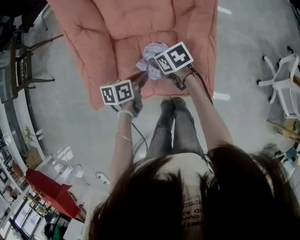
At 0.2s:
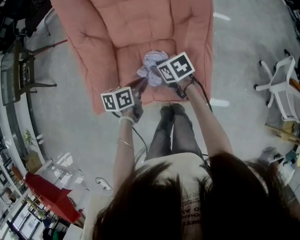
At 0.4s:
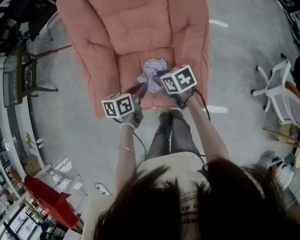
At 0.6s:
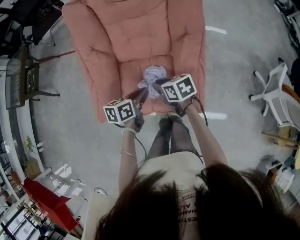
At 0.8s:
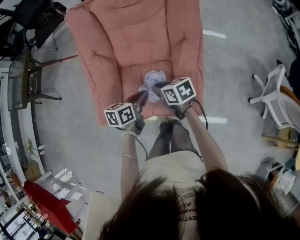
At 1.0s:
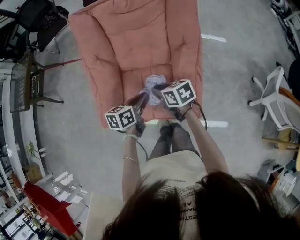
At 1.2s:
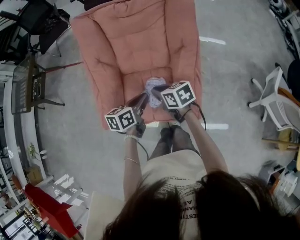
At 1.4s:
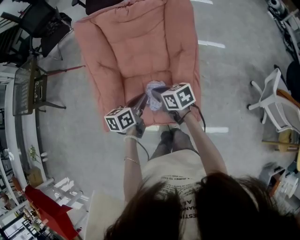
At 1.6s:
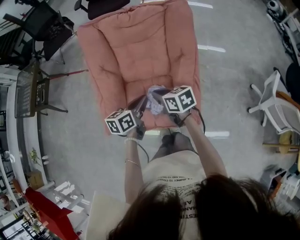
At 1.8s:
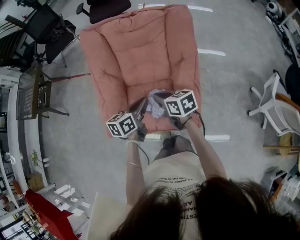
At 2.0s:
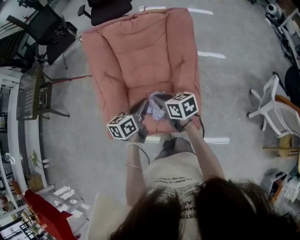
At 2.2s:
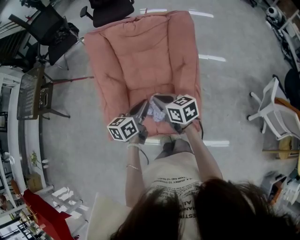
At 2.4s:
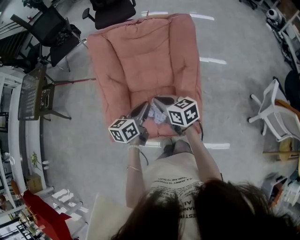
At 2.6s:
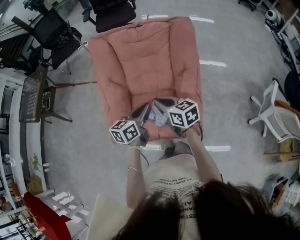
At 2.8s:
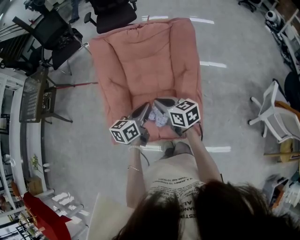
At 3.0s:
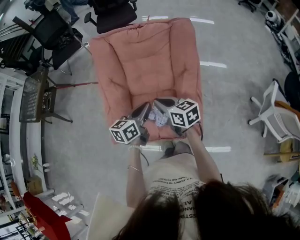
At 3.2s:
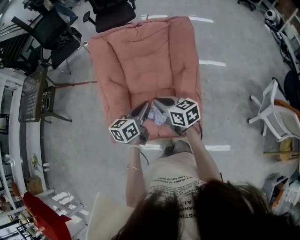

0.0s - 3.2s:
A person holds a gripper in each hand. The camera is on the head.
0.0s - 1.6s: The two grippers go some 20 cm upward. The left gripper swivels approximately 20 degrees, while the right gripper closes up.
1.6s - 3.2s: Both grippers travel together upward, approximately 5 cm.

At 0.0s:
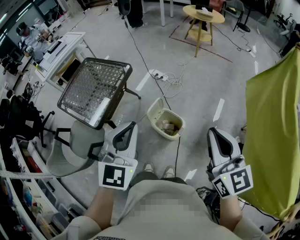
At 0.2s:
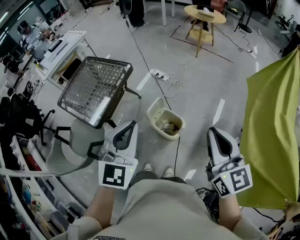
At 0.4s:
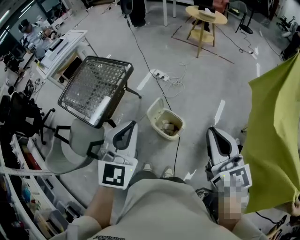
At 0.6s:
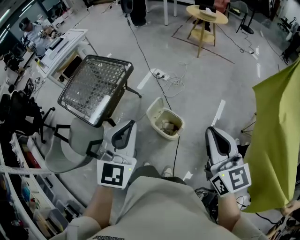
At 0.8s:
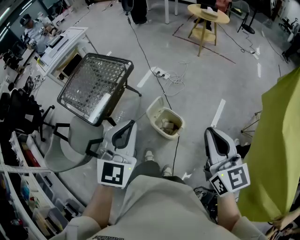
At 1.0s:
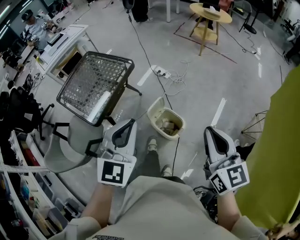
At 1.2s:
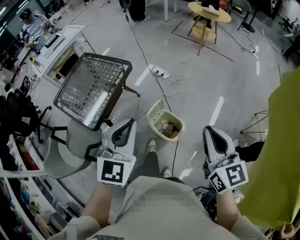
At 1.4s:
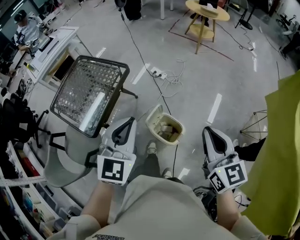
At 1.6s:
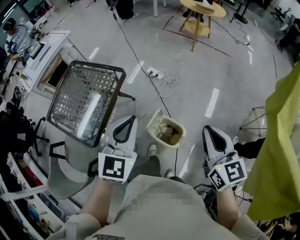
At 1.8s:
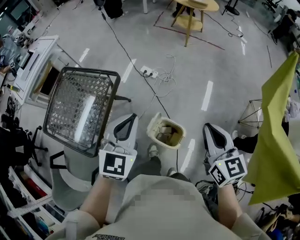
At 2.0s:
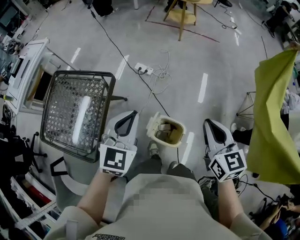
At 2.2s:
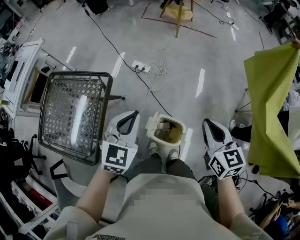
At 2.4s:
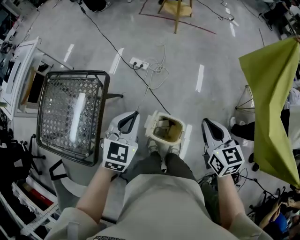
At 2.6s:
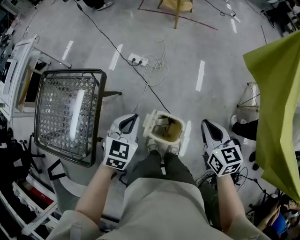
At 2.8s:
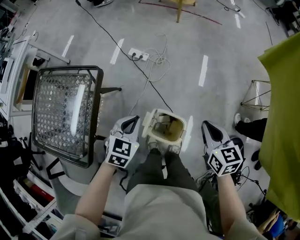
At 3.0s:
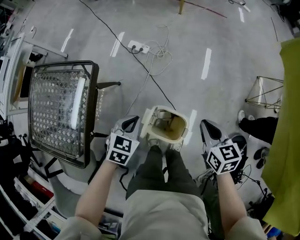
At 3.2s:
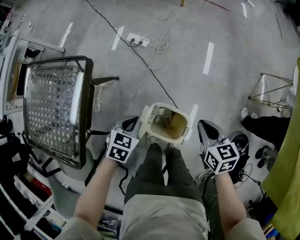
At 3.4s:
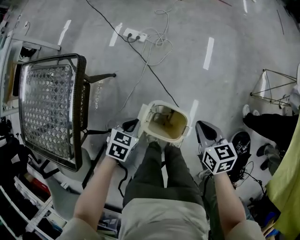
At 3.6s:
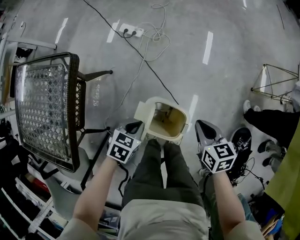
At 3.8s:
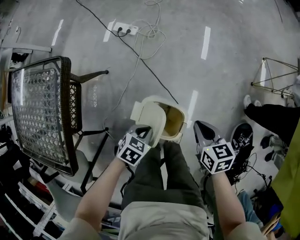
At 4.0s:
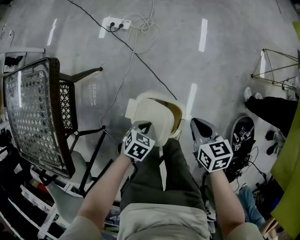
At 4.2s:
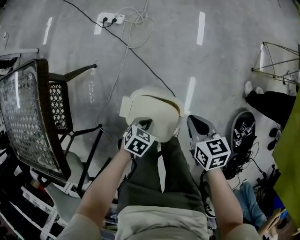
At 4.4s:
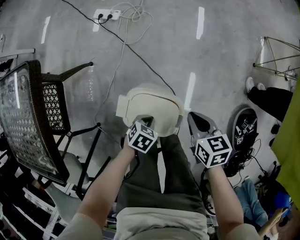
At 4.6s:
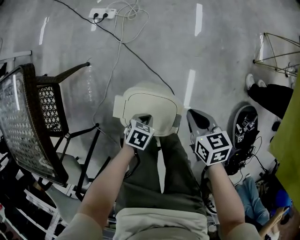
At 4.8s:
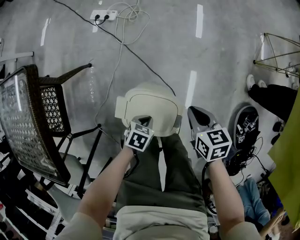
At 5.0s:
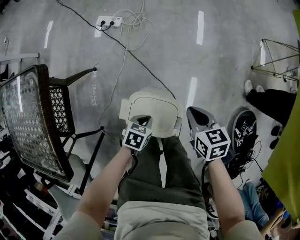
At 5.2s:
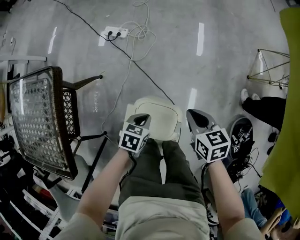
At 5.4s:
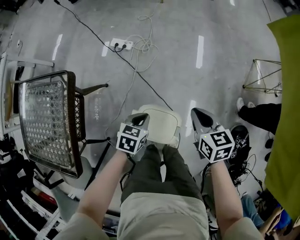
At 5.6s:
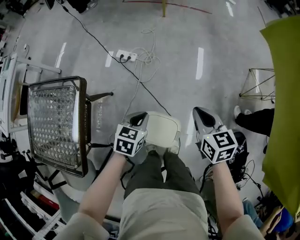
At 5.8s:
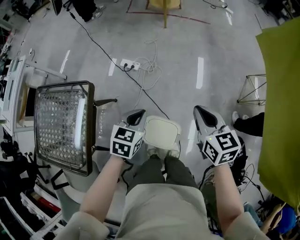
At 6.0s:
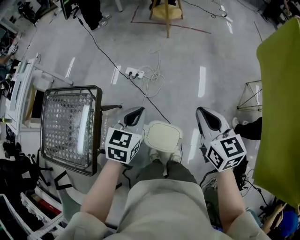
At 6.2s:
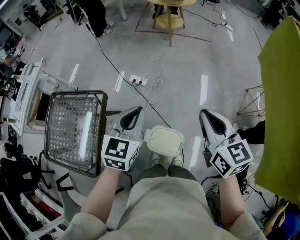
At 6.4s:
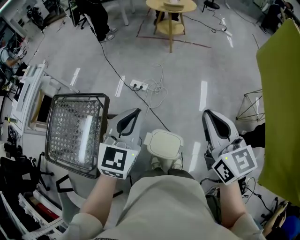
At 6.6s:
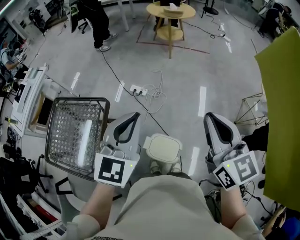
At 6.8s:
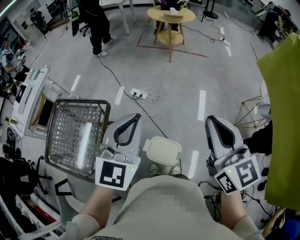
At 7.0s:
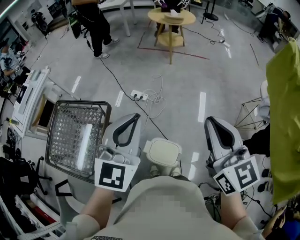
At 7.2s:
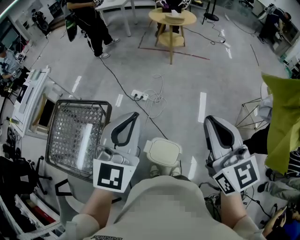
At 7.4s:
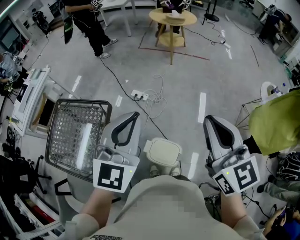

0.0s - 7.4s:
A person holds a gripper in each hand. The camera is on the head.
0.0s - 1.4s: The right gripper is displaced forward and downward by approximately 15 cm. Meanwhile the left gripper moves forward, roughly 10 cm.
1.4s - 3.0s: The two grippers go approximately 35 cm downward and forward. The left gripper tips its fingers downward by approximately 30 degrees. Meanwhile the right gripper rotates approximately 30 degrees.
3.0s - 4.4s: Both grippers move downward, some 30 cm. The left gripper rotates approximately 30 degrees.
4.4s - 6.0s: Both grippers travel together upward, roughly 50 cm. The left gripper tilts its fingers some 30 degrees upward. The right gripper changes its angle by roughly 30 degrees.
6.0s - 7.4s: The grippers both shift upward by about 20 cm. The right gripper rotates roughly 20 degrees. Meanwhile the left gripper changes its angle by some 30 degrees.

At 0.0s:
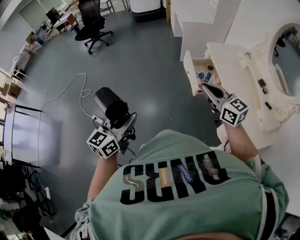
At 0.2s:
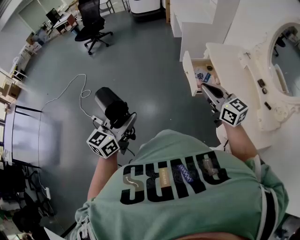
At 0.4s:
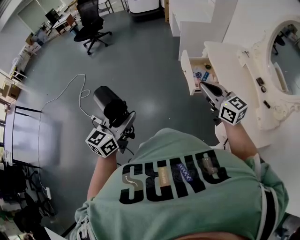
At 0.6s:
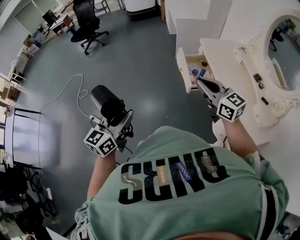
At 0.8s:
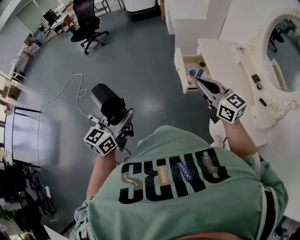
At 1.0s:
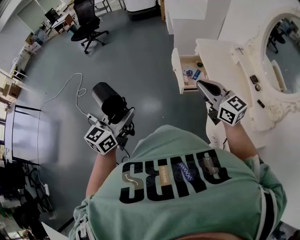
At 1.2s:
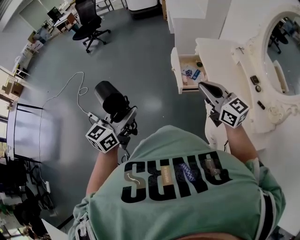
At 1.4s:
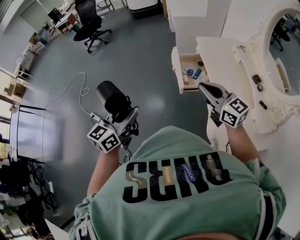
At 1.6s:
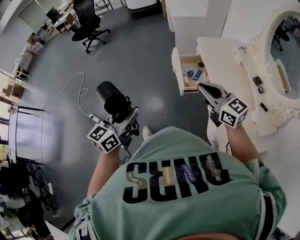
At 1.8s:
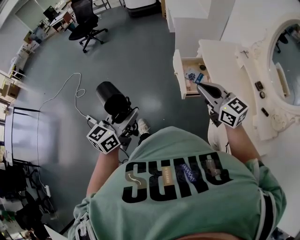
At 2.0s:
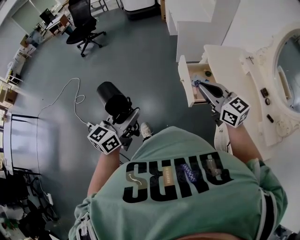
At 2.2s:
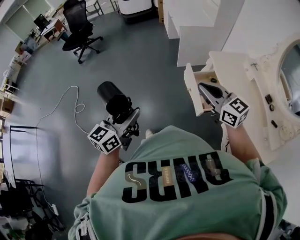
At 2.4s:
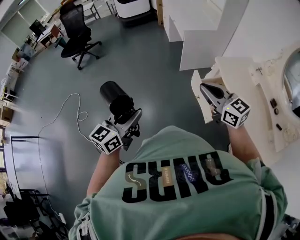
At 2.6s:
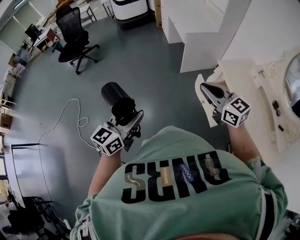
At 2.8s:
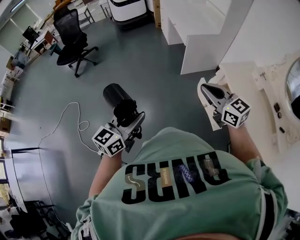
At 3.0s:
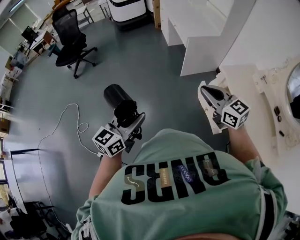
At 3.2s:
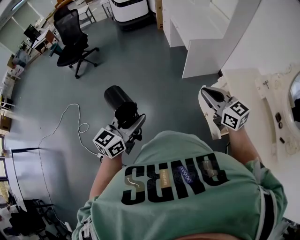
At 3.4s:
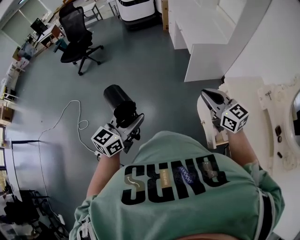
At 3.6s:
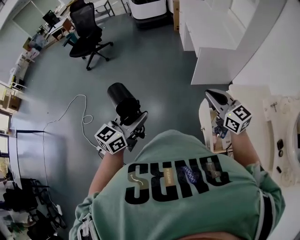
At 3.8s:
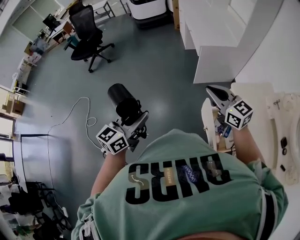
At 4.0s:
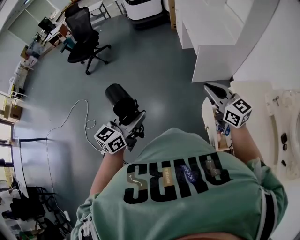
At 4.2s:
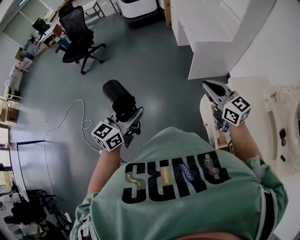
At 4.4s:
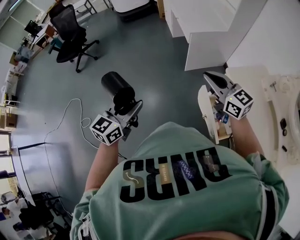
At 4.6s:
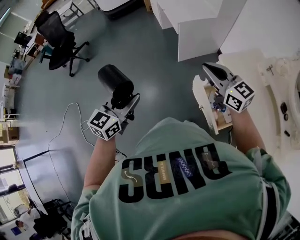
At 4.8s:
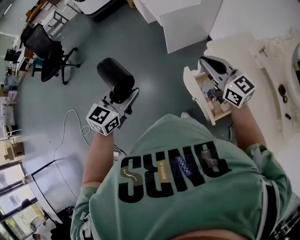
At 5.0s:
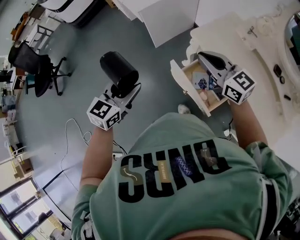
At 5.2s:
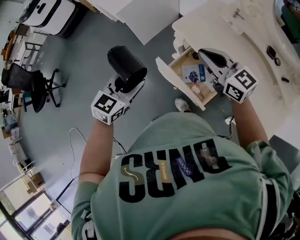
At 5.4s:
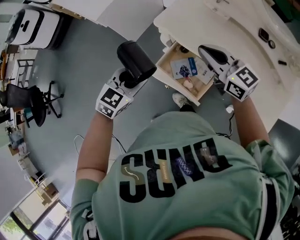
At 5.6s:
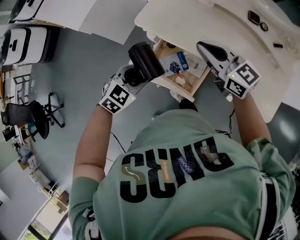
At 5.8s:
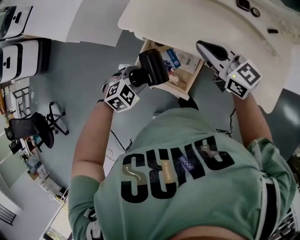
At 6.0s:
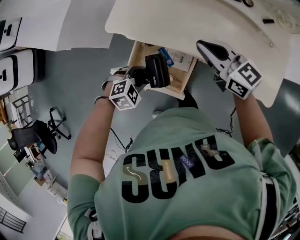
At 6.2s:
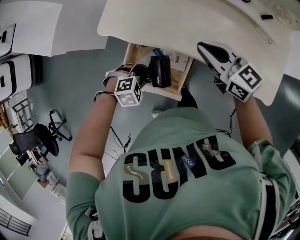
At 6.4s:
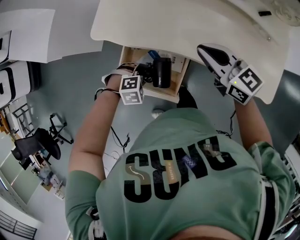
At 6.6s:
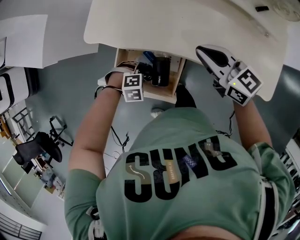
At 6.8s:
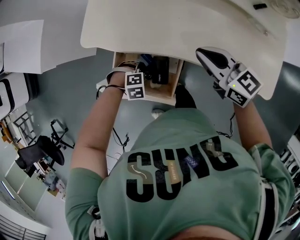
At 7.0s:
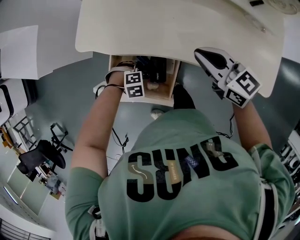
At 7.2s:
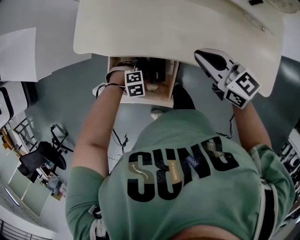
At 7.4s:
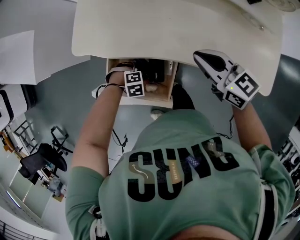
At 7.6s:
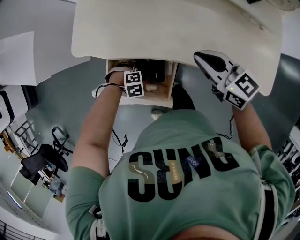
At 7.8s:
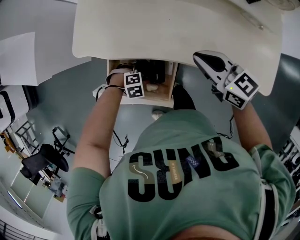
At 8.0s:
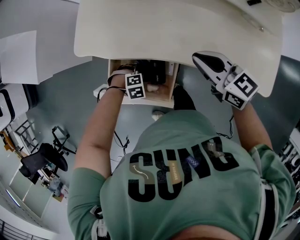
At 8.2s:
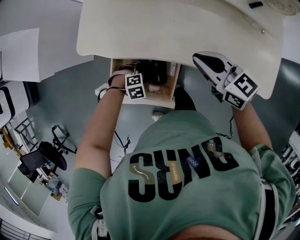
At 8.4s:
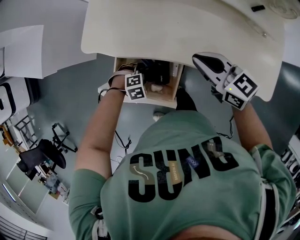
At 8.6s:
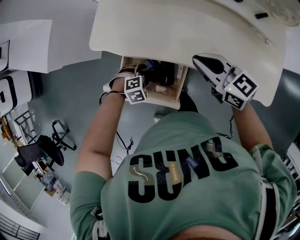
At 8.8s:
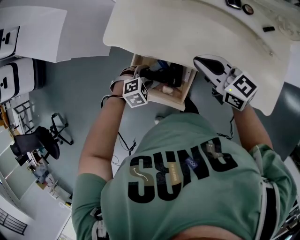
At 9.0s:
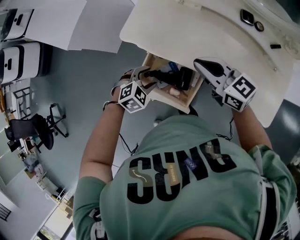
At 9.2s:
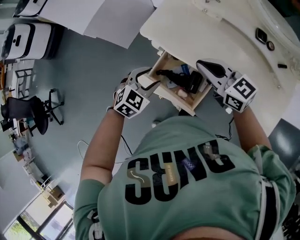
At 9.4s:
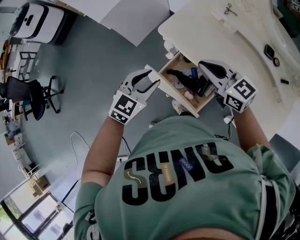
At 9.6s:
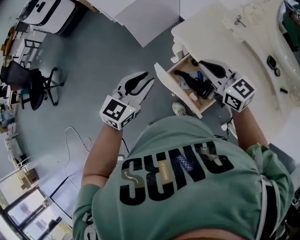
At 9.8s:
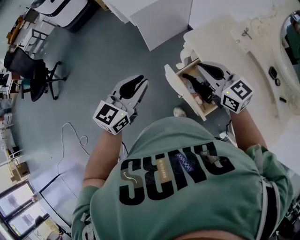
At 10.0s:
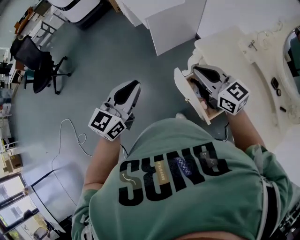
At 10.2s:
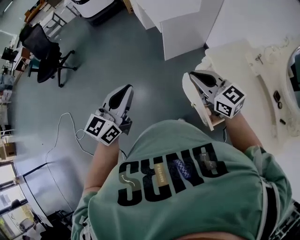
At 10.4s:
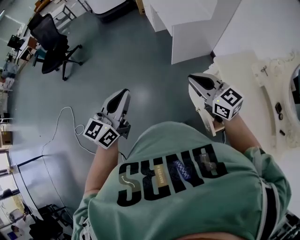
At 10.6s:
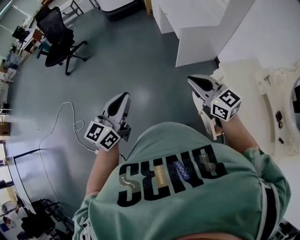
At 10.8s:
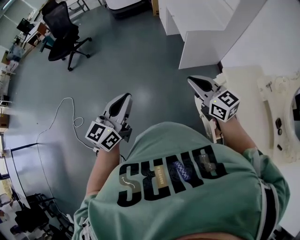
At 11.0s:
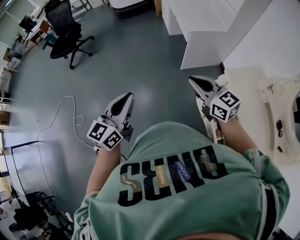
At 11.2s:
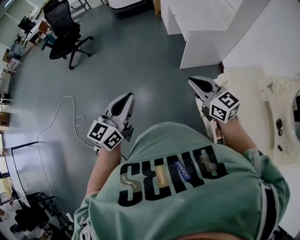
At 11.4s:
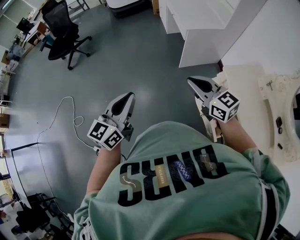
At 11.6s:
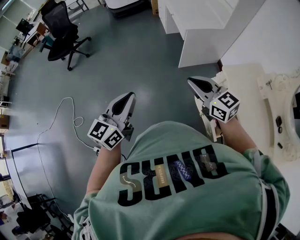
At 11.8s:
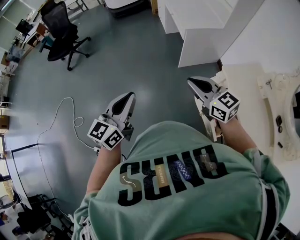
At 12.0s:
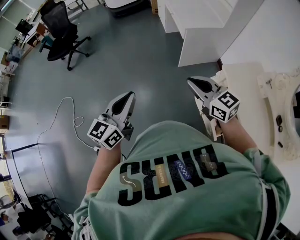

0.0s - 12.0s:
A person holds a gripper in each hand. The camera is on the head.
0.0s - 1.6s: Both grippers travel together to the right, roughly 15 cm.
1.6s - 3.0s: Both grippers are carried forward and to the left, approximately 40 cm.
3.0s - 4.4s: The two grippers go about 15 cm forward and to the right.
4.4s - 6.0s: Both grippers are carried approximately 40 cm. The right gripper swivels about 50 degrees. The left gripper tips its fingers downward by approximately 50 degrees.
6.0s - 7.6s: The right gripper shifts by roughly 10 cm. Meanwhile the left gripper heads downward, covering about 15 cm, and rotates some 30 degrees.
7.6s - 9.0s: The right gripper shifts by approximately 15 cm; the left gripper goes approximately 20 cm upward, and swivels roughly 50 degrees.
9.0s - 10.4s: The pair of grippers is taken approximately 40 cm. The right gripper rotates roughly 40 degrees; the left gripper tilts its fingers some 60 degrees upward, and closes its fingers.
10.4s - 12.0s: The right gripper moves to the left, roughly 5 cm.

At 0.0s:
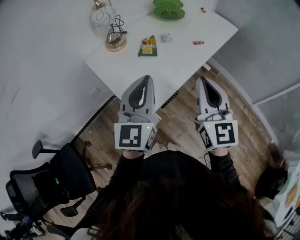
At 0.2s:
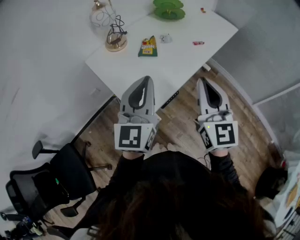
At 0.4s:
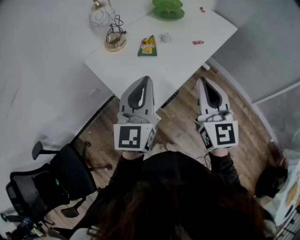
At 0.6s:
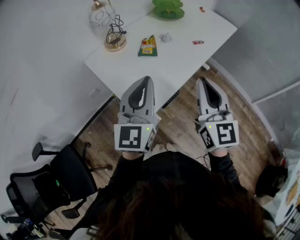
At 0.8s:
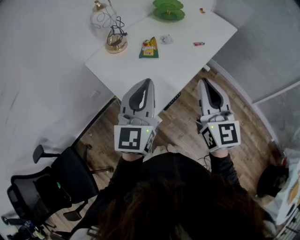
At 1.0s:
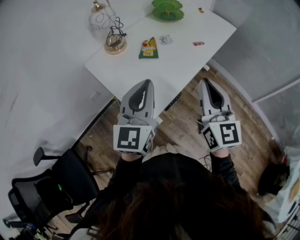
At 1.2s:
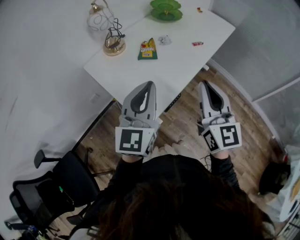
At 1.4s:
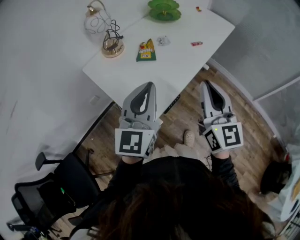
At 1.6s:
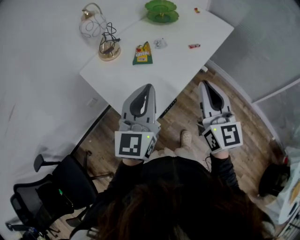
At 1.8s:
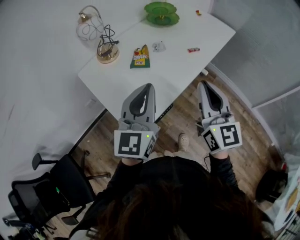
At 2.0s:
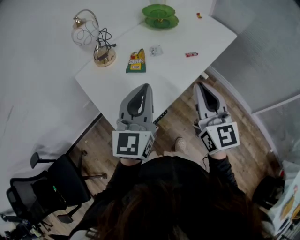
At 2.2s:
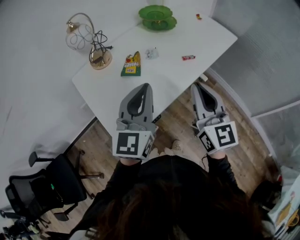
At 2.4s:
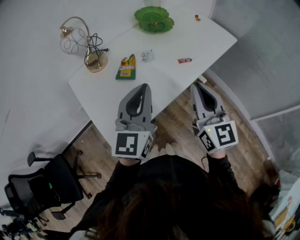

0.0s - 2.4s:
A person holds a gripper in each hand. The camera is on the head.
0.0s - 1.2s: The grippers stay close to where they were, moving slightly.
1.2s - 2.4s: The right gripper shifts some 20 cm forward and to the right; the left gripper is displaced to the right and forward by approximately 20 cm.
